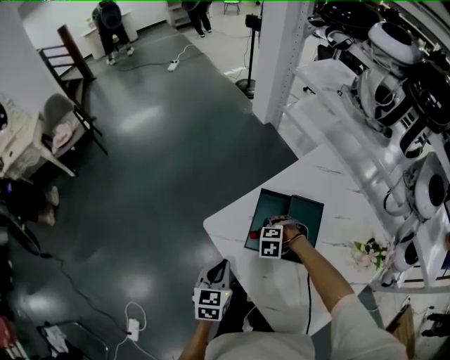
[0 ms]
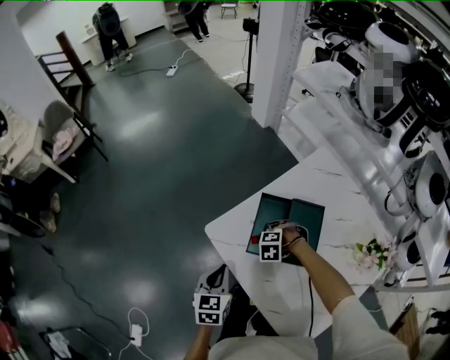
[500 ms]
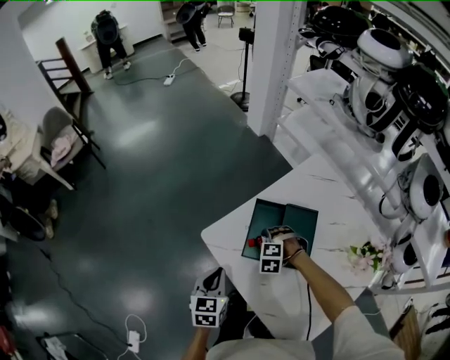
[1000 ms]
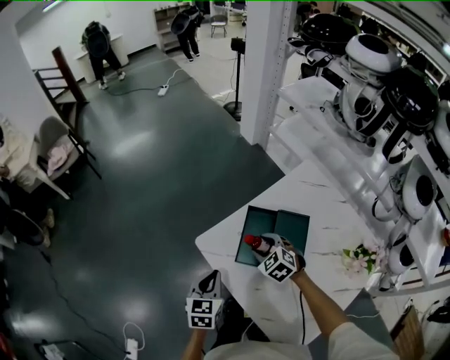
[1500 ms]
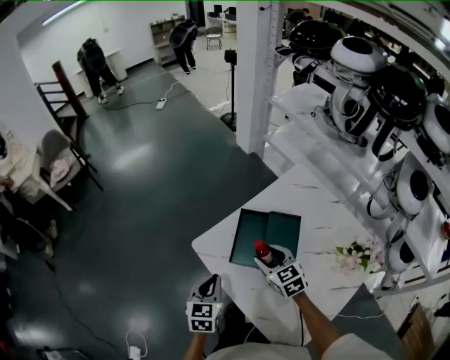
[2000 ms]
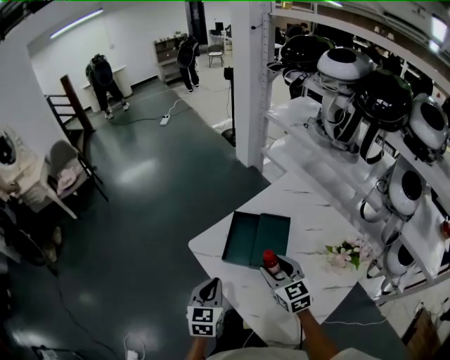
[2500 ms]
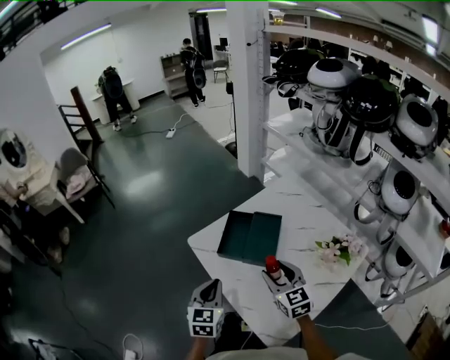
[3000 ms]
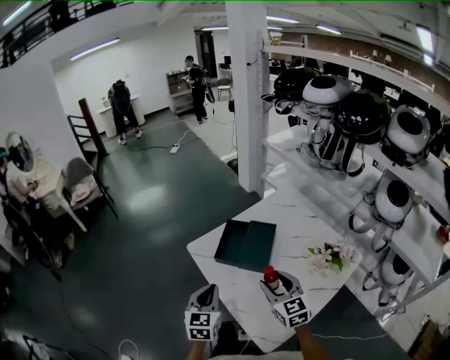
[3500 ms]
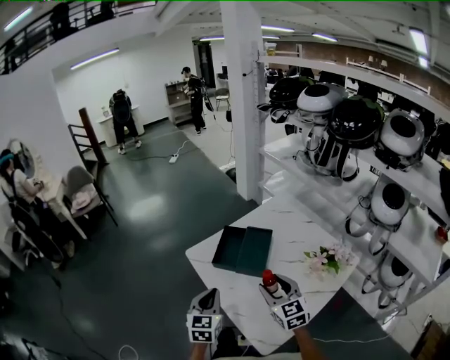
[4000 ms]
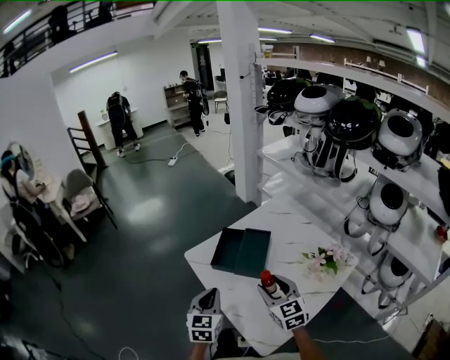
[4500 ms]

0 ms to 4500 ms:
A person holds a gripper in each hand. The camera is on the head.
0 ms to 2000 ms: The right gripper moves upward, roughly 15 cm, and angles its fingers upward, by about 50 degrees.
2000 ms to 4500 ms: Both grippers move backward, upward and to the right, about 25 cm.

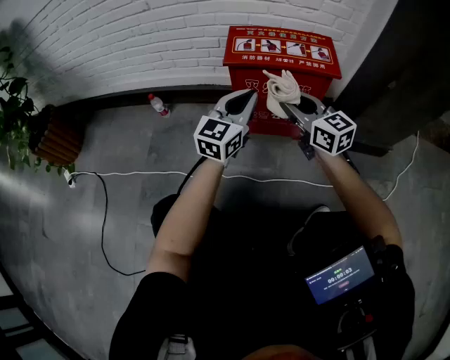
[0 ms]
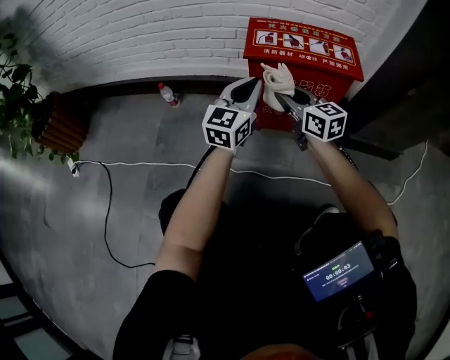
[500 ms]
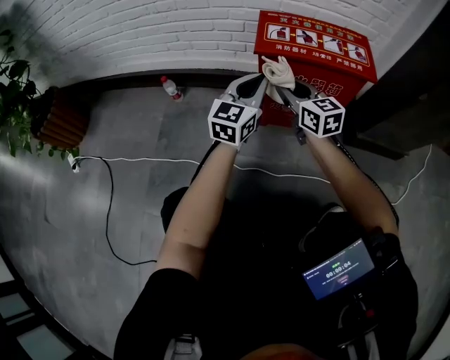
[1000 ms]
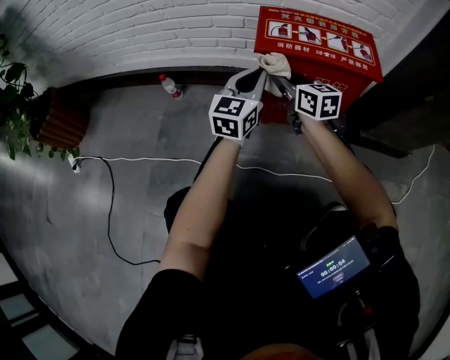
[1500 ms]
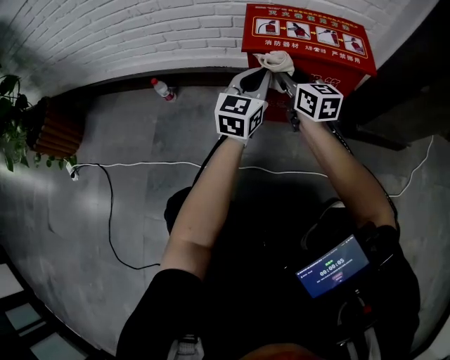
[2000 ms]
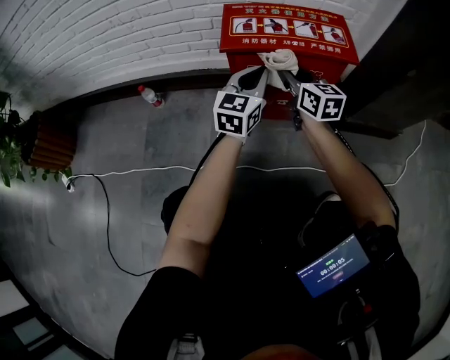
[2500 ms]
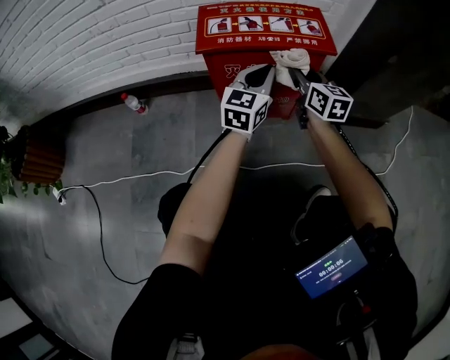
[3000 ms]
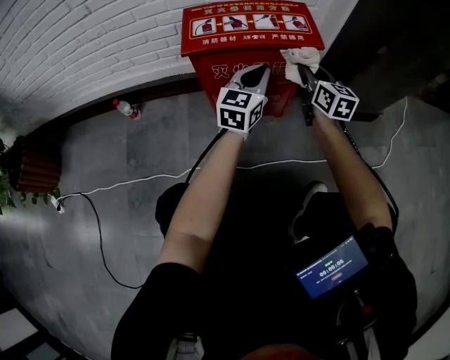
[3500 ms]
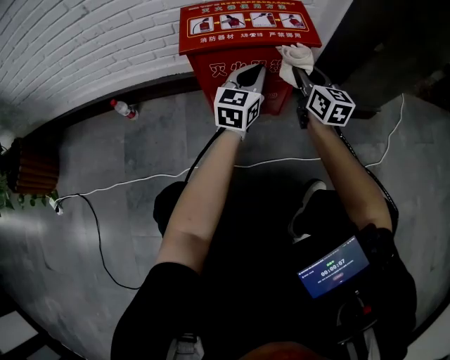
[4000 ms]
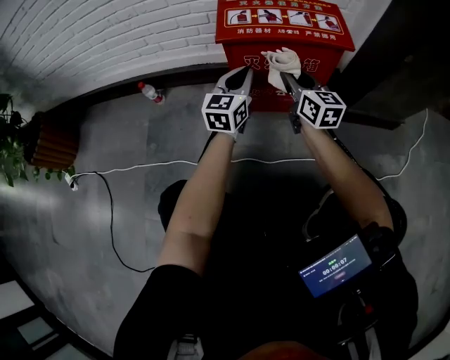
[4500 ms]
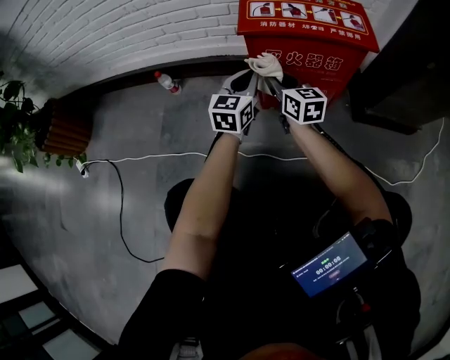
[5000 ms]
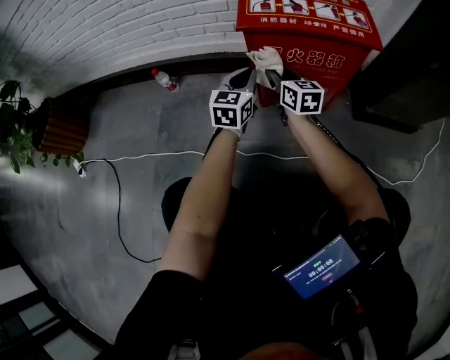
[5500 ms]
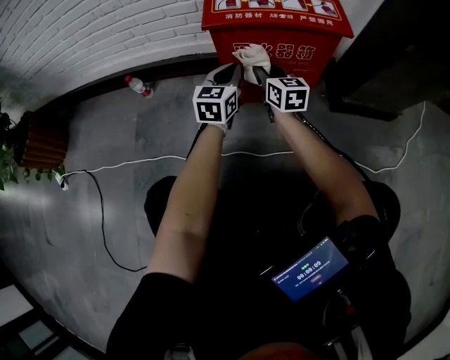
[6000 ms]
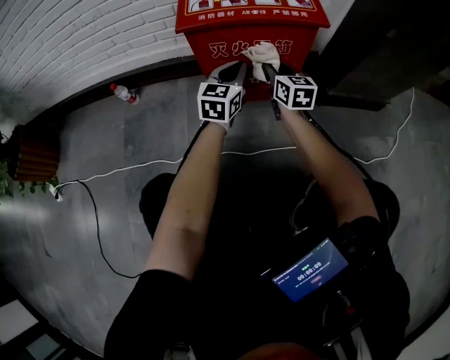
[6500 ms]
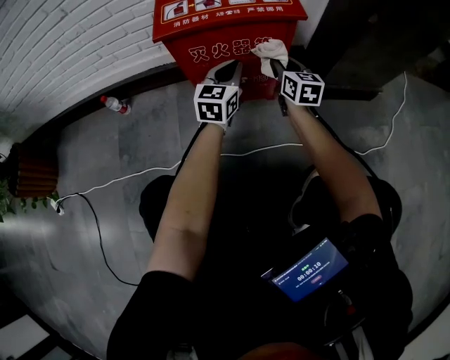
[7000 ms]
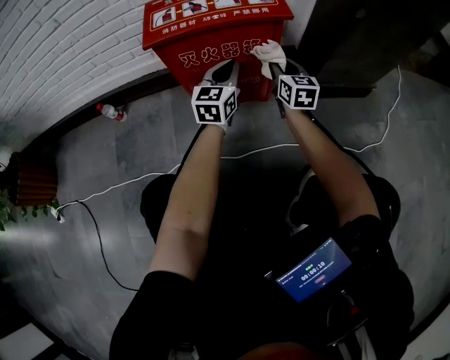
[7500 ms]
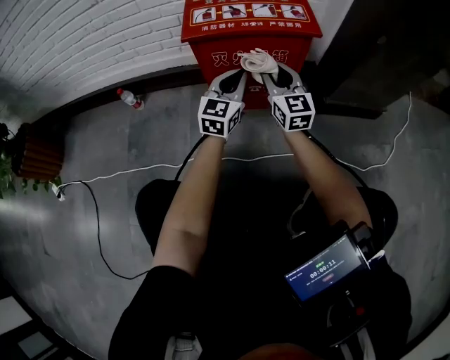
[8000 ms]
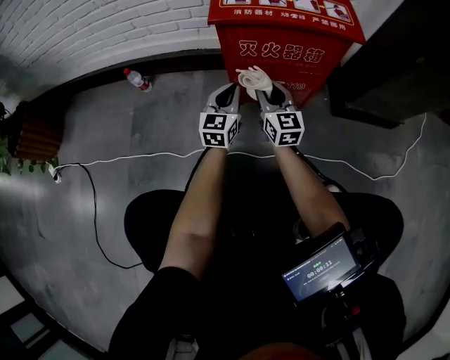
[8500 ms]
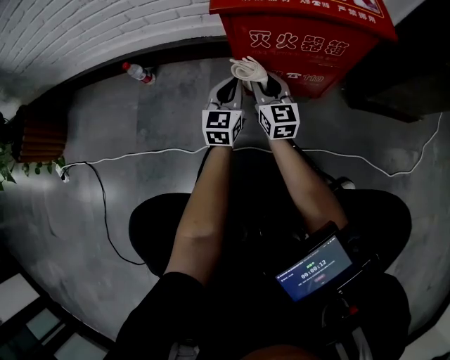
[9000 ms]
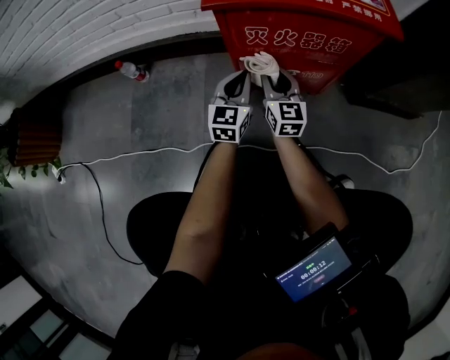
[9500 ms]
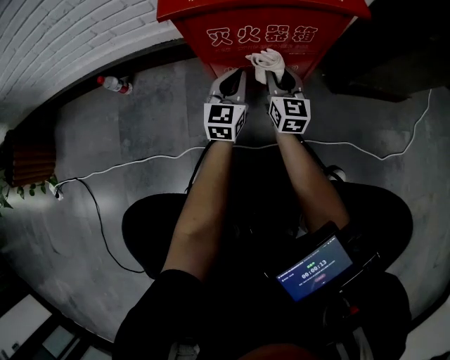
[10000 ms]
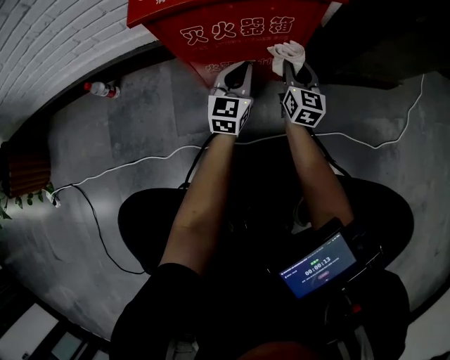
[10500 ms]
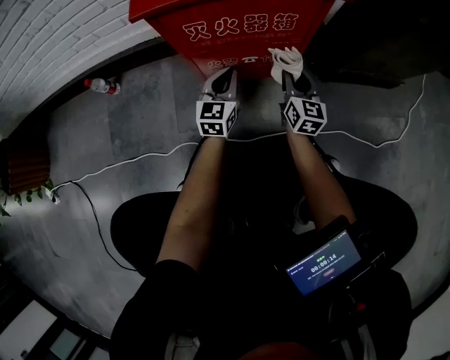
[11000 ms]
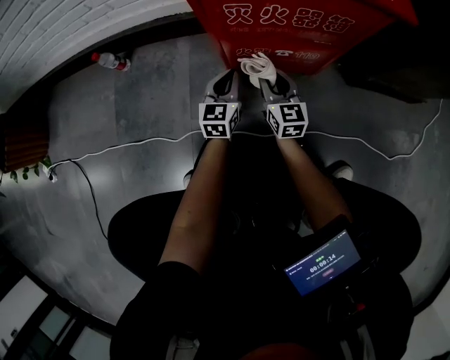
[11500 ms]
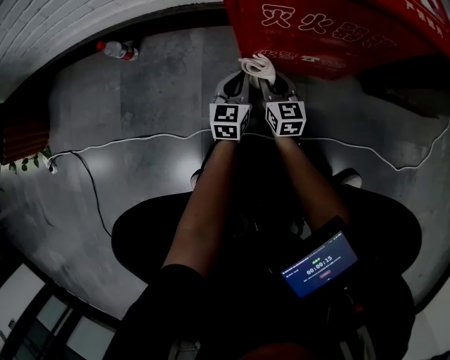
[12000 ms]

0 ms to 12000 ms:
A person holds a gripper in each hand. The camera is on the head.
0 ms to 2000 ms: Both grippers move forward and downward, roughly 15 cm.
2000 ms to 4000 ms: The left gripper shifts about 15 cm to the right; the right gripper is displaced to the right by some 20 cm, and turns by about 20 degrees.
4000 ms to 6000 ms: The grippers both shift to the left and downward by approximately 20 cm.
6000 ms to 8000 ms: The right gripper is displaced to the right and upward by some 10 cm, and changes its angle by some 20 degrees. The left gripper shifts approximately 10 cm to the right.
8000 ms to 10000 ms: The two grippers go some 15 cm downward.
10000 ms to 12000 ms: The grippers both shift downward and to the left by some 20 cm.

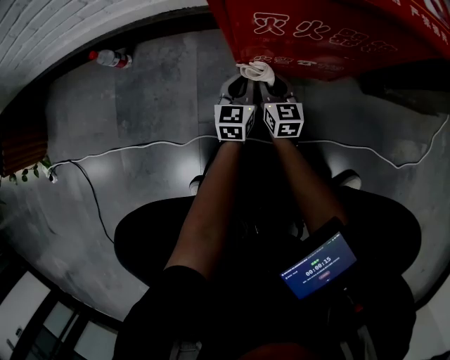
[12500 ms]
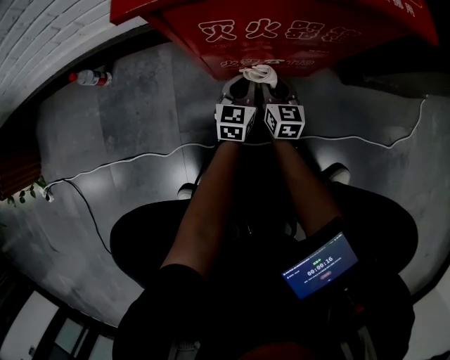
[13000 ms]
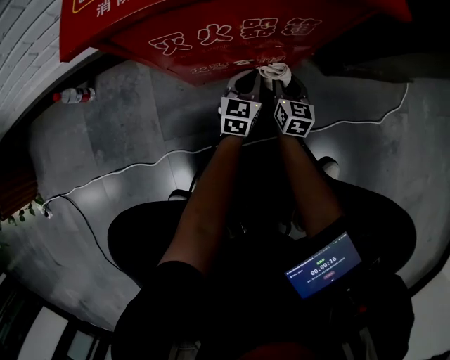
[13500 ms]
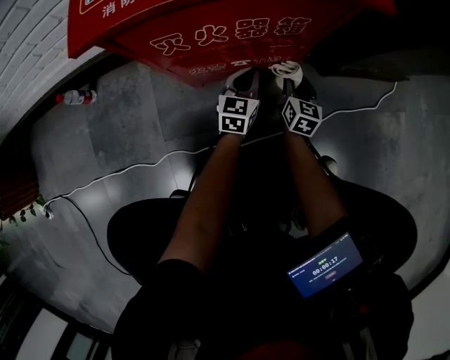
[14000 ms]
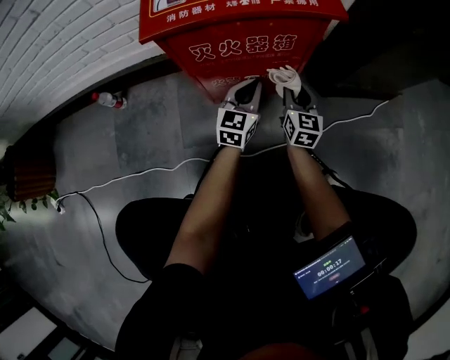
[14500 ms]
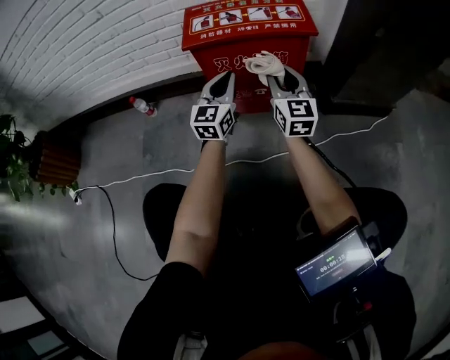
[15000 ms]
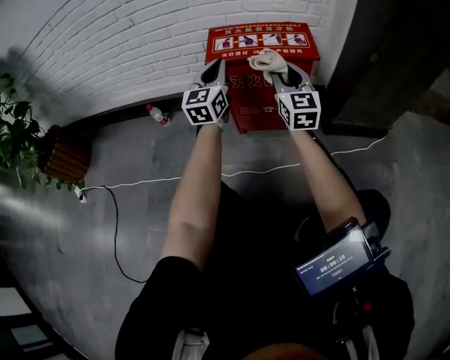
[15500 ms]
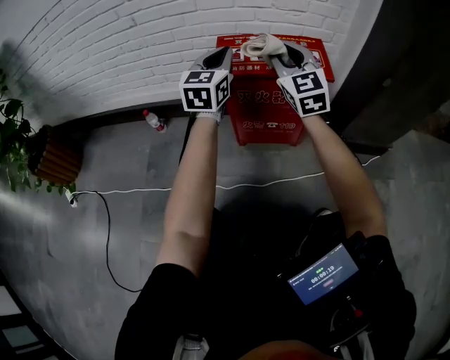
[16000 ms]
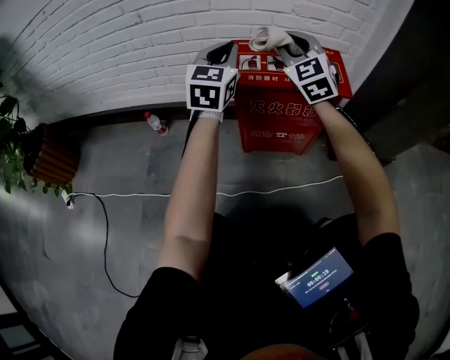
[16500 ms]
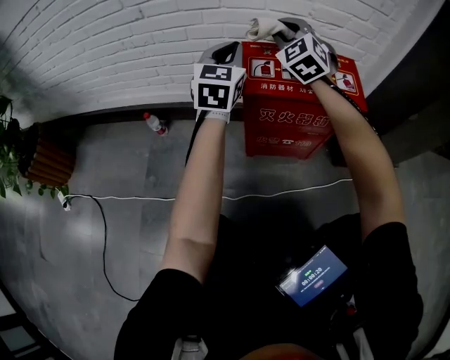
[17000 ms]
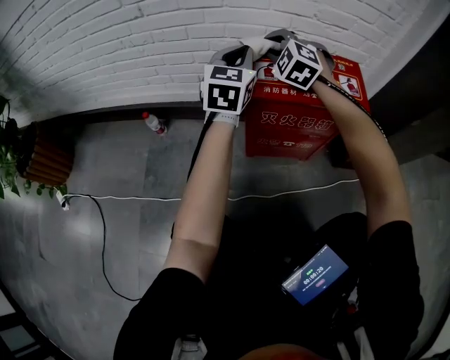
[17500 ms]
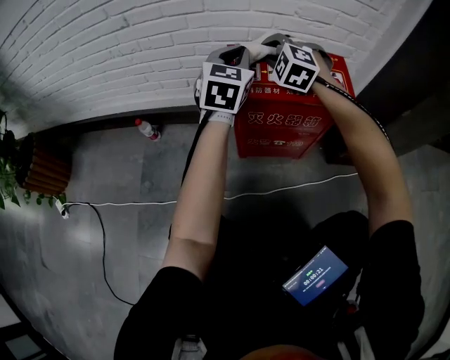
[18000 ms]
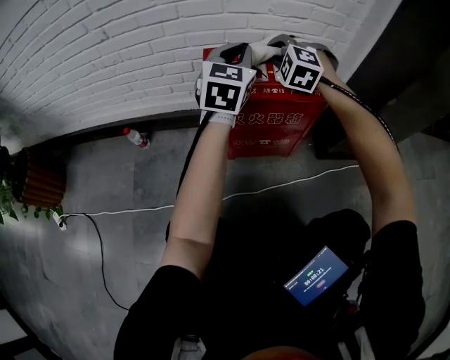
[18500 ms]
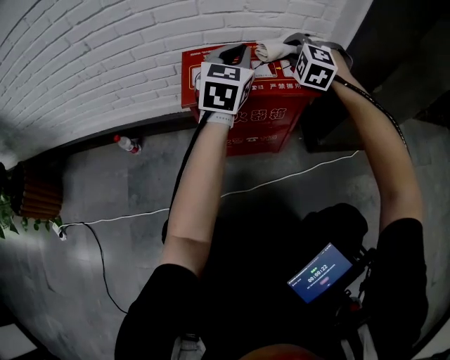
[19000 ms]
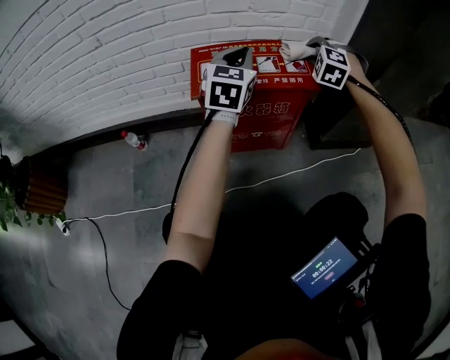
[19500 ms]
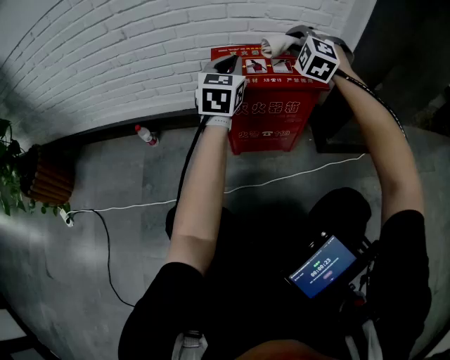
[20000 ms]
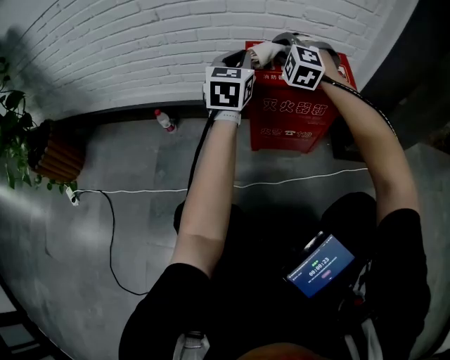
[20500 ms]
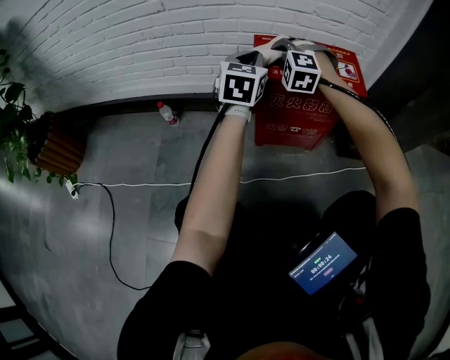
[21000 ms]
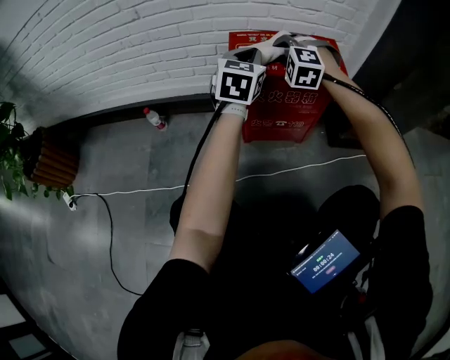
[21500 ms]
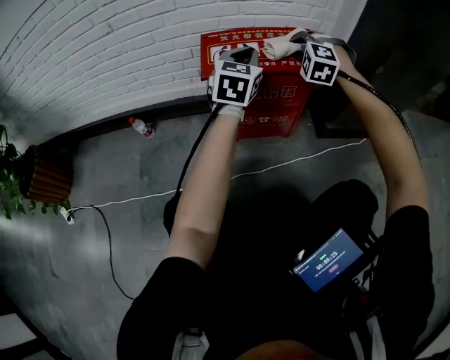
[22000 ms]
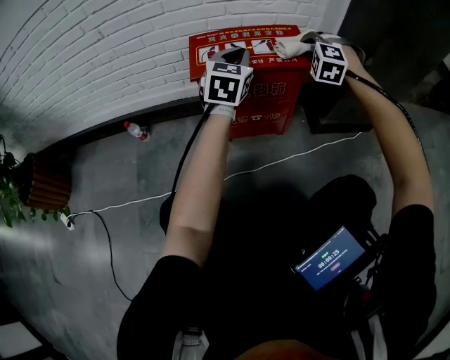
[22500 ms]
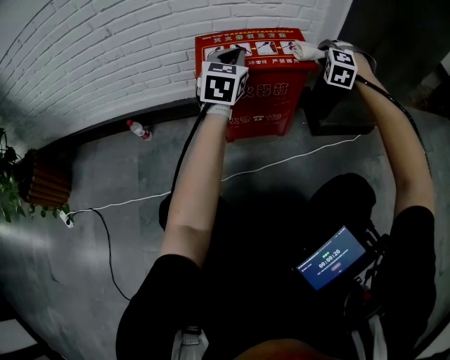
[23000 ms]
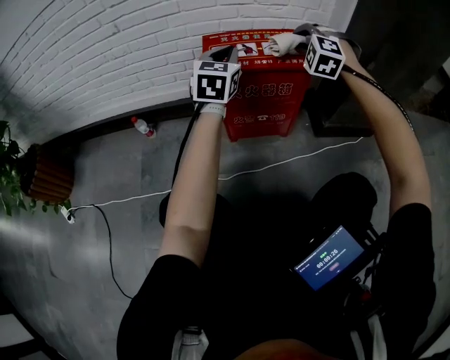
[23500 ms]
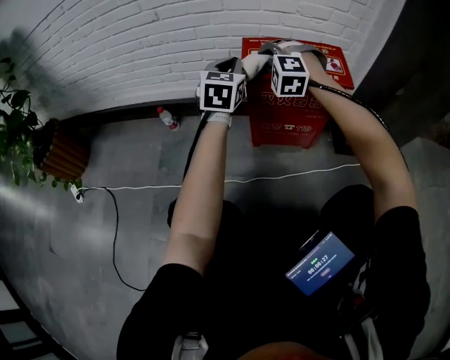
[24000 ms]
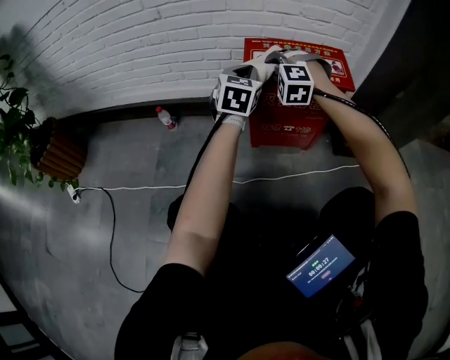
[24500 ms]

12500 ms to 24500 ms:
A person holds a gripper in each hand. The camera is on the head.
12500 ms to 14500 ms: Both grippers move to the right and upward, some 25 cm. The left gripper turns by approximately 20 degrees. The right gripper turns by approximately 20 degrees.
14500 ms to 16500 ms: Both grippers move upward and to the left, approximately 40 cm. The right gripper rolls counterclockwise, seen from behind, by approximately 50 degrees, while the left gripper swivels roughly 20 degrees.
16500 ms to 18500 ms: The right gripper travels downward and forward by approximately 10 cm, goes to the left and returns, about 10 cm each way, and angles its fingers downward, by some 30 degrees. Meanwhile the left gripper shifts approximately 10 cm to the right.
18500 ms to 20500 ms: Both grippers move to the left and backward, some 10 cm.
20500 ms to 22500 ms: The left gripper is displaced to the right by some 15 cm, while the right gripper moves to the right, about 25 cm.
22500 ms to 24500 ms: The left gripper moves to the left, some 15 cm. The right gripper travels to the left by some 25 cm, and rotates approximately 20 degrees.
